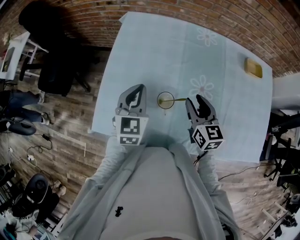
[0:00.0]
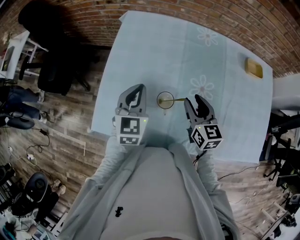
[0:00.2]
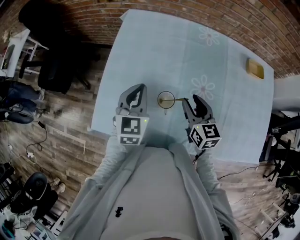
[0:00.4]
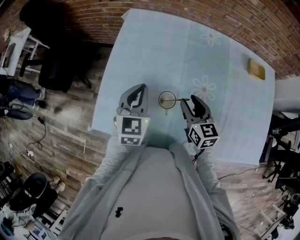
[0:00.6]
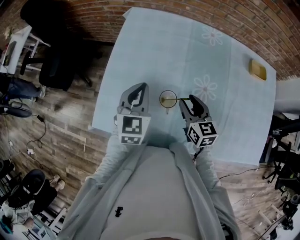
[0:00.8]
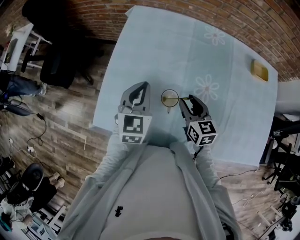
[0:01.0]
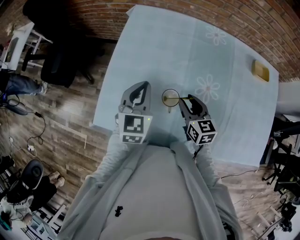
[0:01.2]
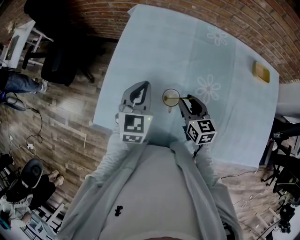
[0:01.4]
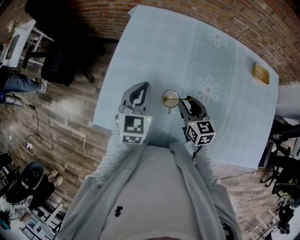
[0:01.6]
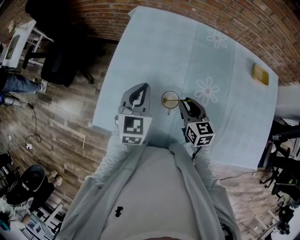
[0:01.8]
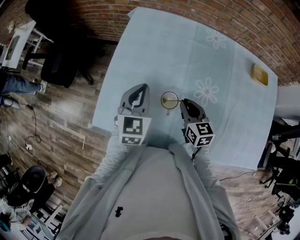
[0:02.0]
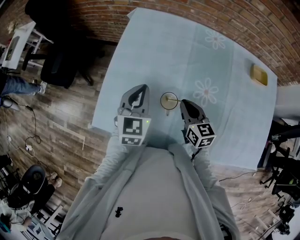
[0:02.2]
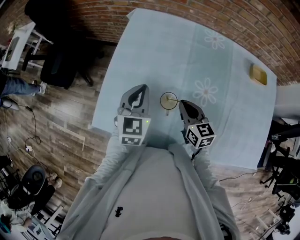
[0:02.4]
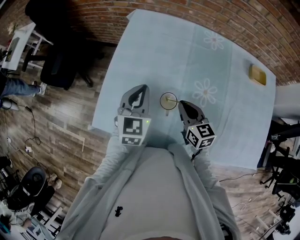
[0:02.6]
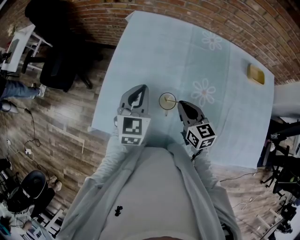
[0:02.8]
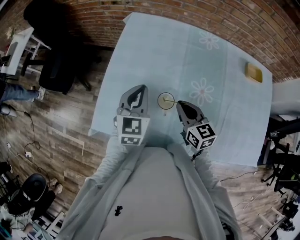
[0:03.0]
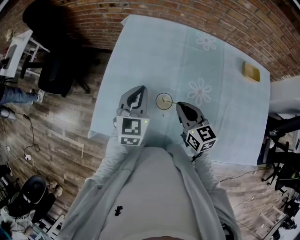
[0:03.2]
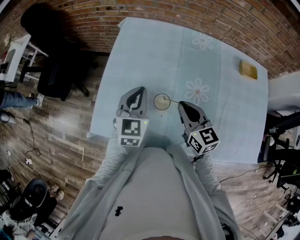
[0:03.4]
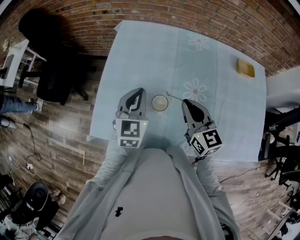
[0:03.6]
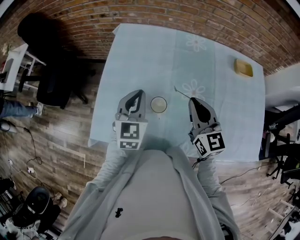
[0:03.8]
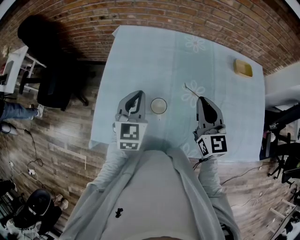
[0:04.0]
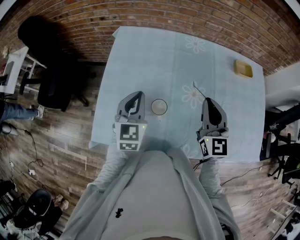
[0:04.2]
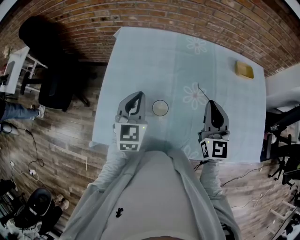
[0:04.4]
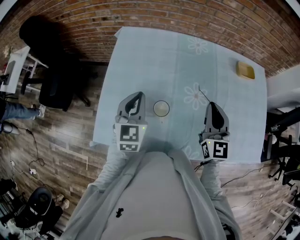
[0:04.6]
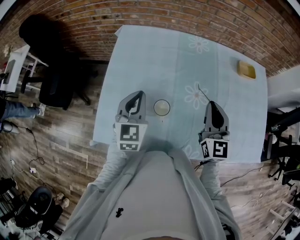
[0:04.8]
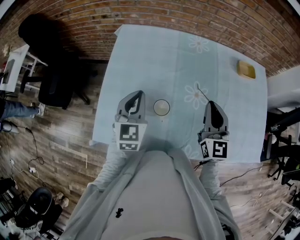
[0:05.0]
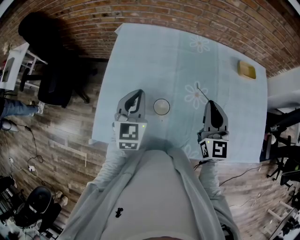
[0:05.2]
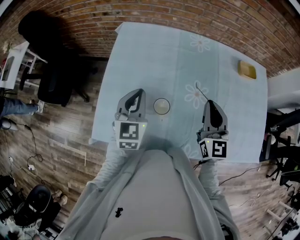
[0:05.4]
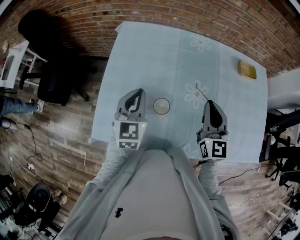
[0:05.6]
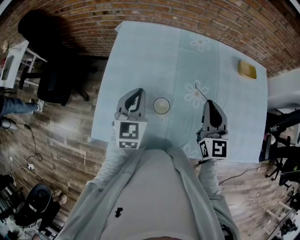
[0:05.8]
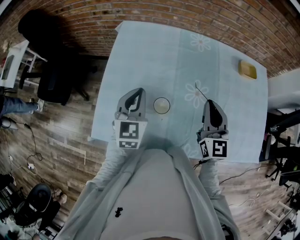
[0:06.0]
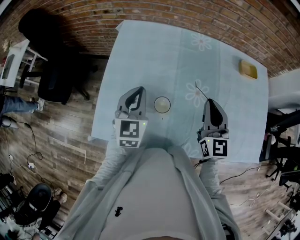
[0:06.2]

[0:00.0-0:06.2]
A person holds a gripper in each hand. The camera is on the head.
0:00.0 to 0:01.6: The right gripper heads downward, covering approximately 5 cm.
0:01.6 to 0:03.2: The right gripper shifts approximately 5 cm upward, and closes up.
0:03.2 to 0:04.6: The right gripper travels to the right and upward by some 15 cm, and rotates roughly 40 degrees.
0:04.6 to 0:06.2: The grippers make only small movements.

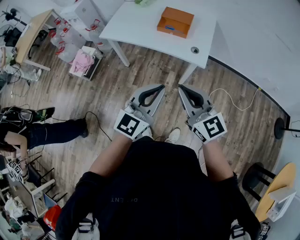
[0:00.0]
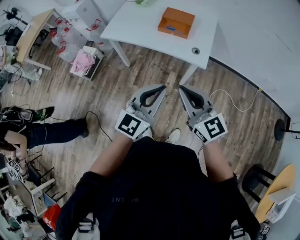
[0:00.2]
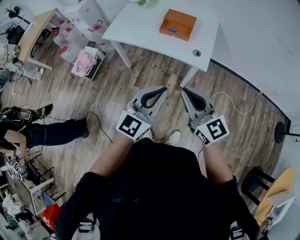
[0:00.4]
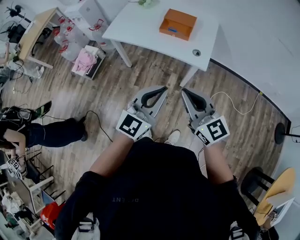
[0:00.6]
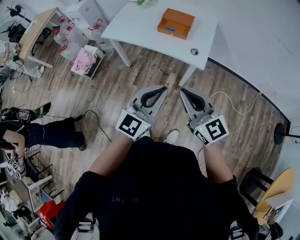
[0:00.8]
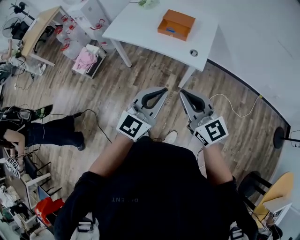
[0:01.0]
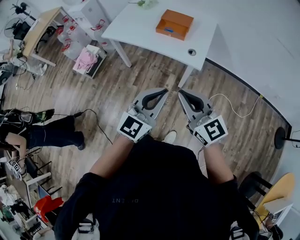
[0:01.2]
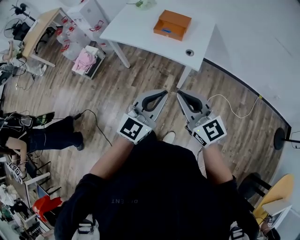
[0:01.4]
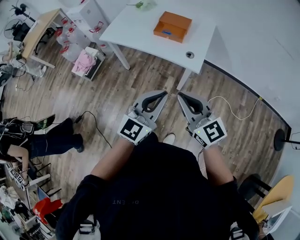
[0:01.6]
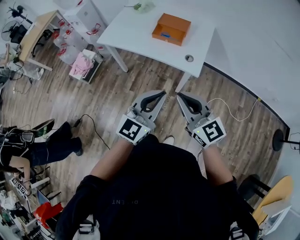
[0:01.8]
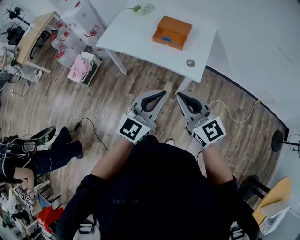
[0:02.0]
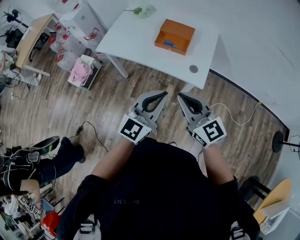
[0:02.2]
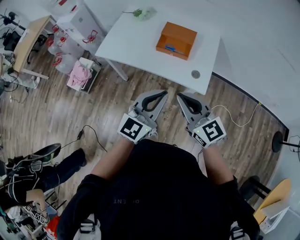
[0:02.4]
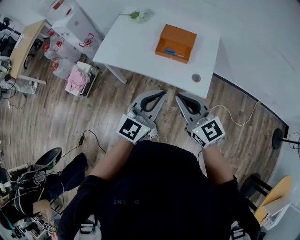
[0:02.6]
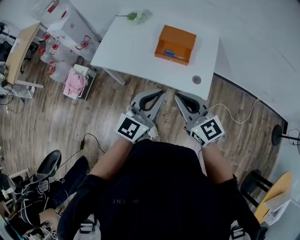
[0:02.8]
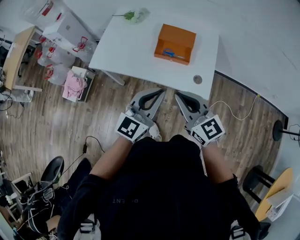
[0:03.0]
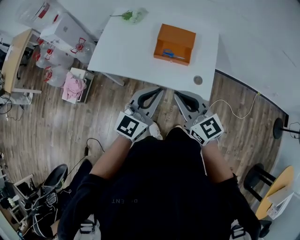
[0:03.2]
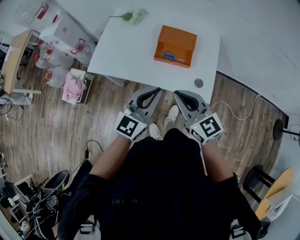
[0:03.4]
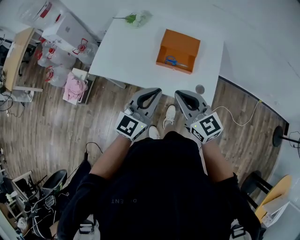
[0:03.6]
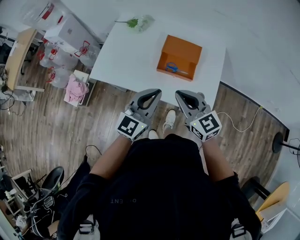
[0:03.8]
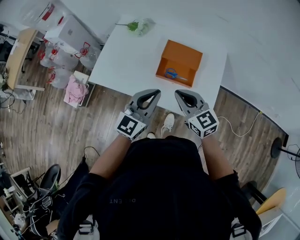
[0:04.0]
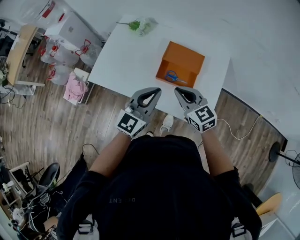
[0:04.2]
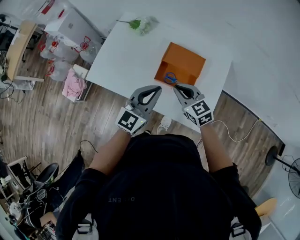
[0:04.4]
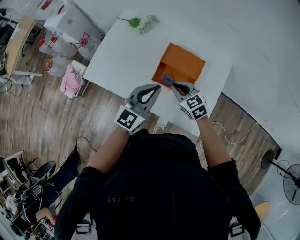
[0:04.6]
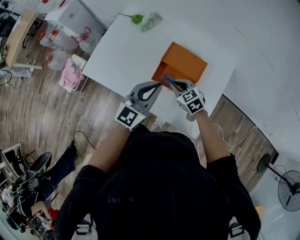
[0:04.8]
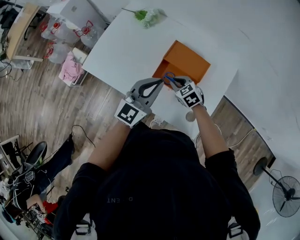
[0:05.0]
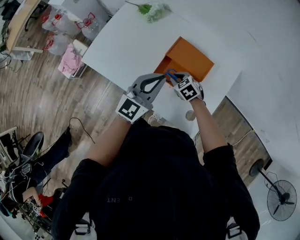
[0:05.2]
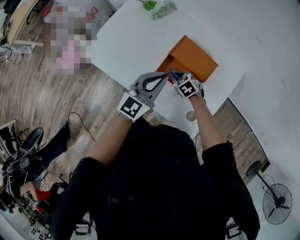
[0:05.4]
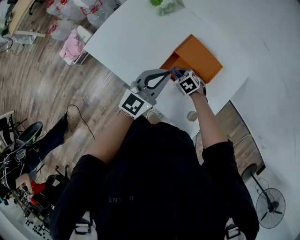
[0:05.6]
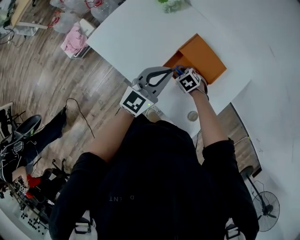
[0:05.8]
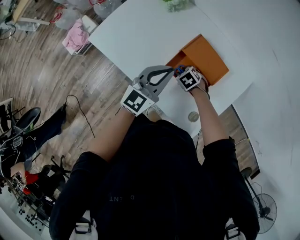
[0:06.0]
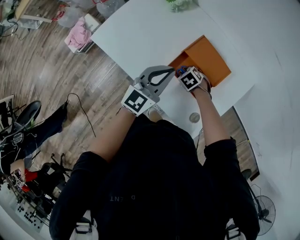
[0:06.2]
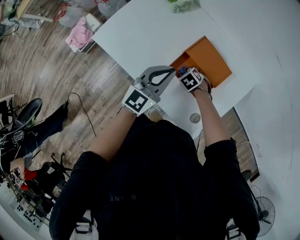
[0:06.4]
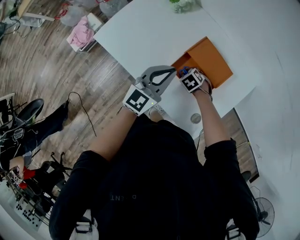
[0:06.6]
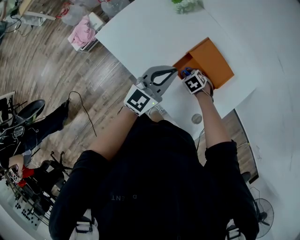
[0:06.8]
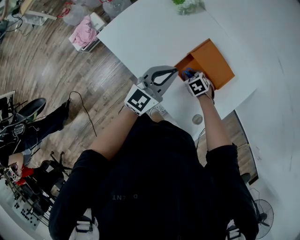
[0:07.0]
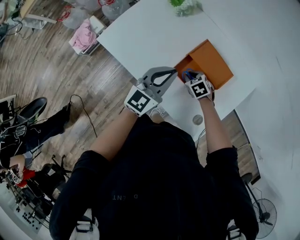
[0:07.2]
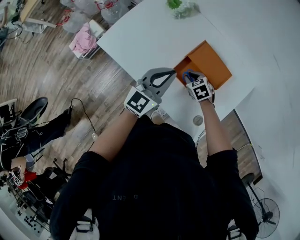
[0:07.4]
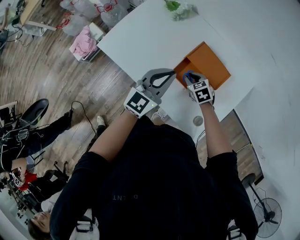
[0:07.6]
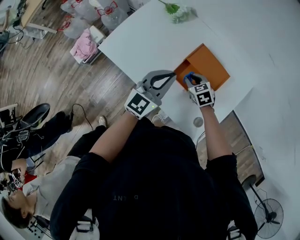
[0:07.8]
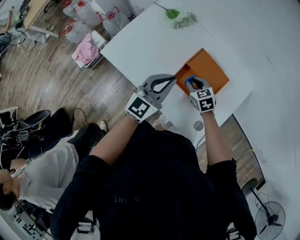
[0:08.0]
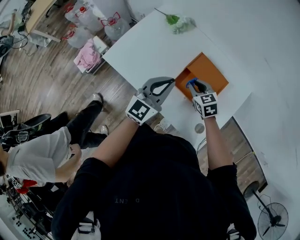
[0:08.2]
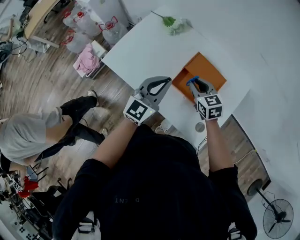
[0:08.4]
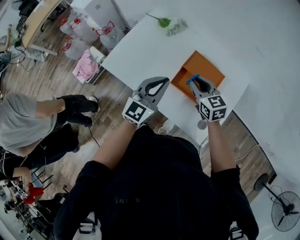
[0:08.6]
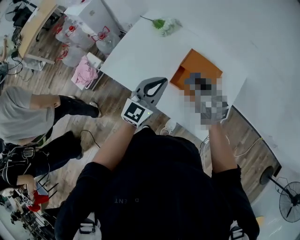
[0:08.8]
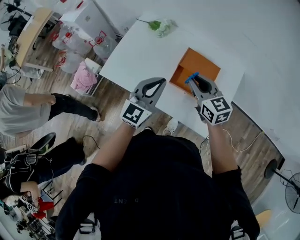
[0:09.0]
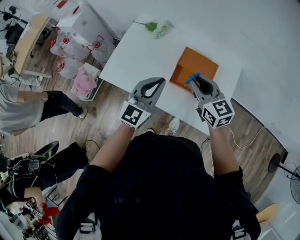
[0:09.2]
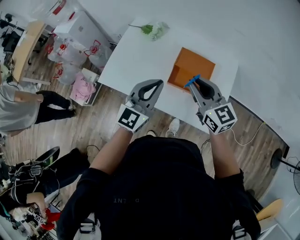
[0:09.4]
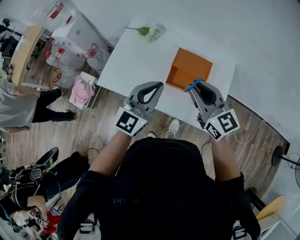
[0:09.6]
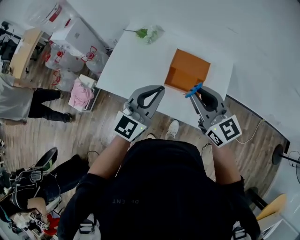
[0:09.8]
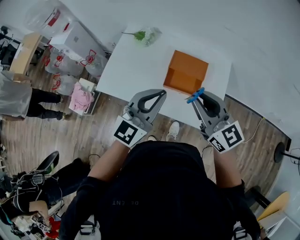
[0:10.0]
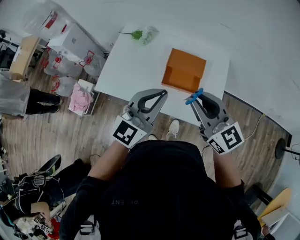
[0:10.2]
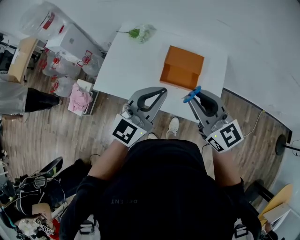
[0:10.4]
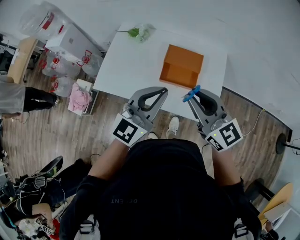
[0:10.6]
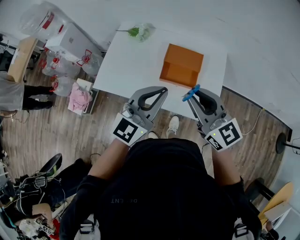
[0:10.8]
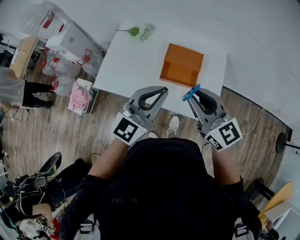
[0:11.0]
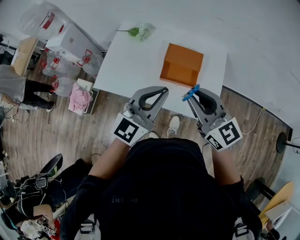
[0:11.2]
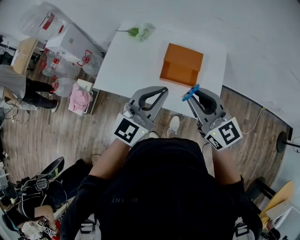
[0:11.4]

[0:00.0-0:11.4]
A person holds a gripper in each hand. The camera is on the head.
0:00.0 to 0:01.4: The two grippers go roughly 10 cm to the right.
0:01.4 to 0:02.8: Both grippers move forward, roughly 25 cm.
0:02.8 to 0:04.2: The right gripper shifts some 25 cm forward and downward. The left gripper shifts roughly 20 cm forward.
0:04.2 to 0:05.6: The left gripper heads forward and downward, covering some 15 cm; the right gripper goes about 30 cm downward and forward, tilts its fingers approximately 40 degrees downward, and opens its fingers.
0:05.6 to 0:07.2: The grippers stay close to where they were, moving slightly.
0:07.2 to 0:08.6: The left gripper goes approximately 5 cm upward, while the right gripper travels upward by roughly 25 cm, and tilts its fingers roughly 40 degrees upward.
0:08.6 to 0:10.0: The left gripper is displaced upward and backward by approximately 15 cm. The right gripper shifts approximately 25 cm upward and backward, and rotates some 30 degrees.
0:10.0 to 0:11.4: The grippers stay close to where they were, moving slightly.

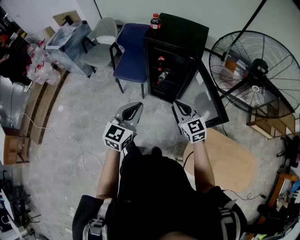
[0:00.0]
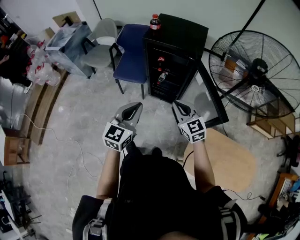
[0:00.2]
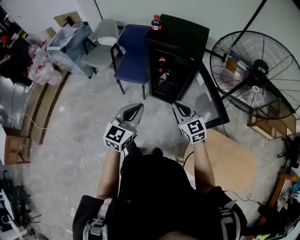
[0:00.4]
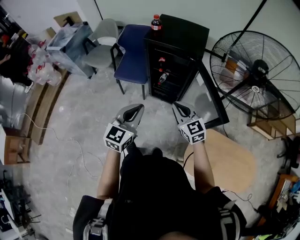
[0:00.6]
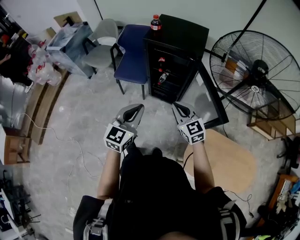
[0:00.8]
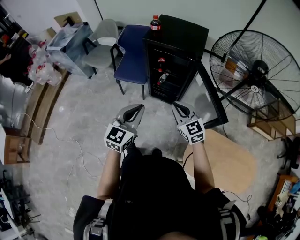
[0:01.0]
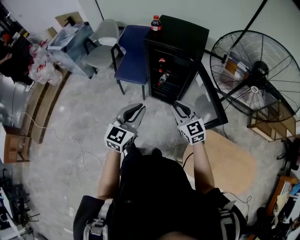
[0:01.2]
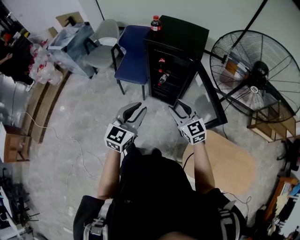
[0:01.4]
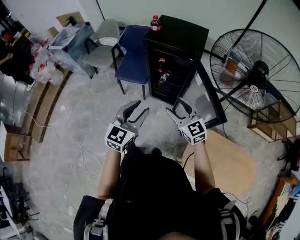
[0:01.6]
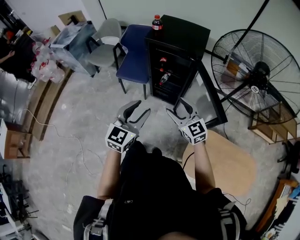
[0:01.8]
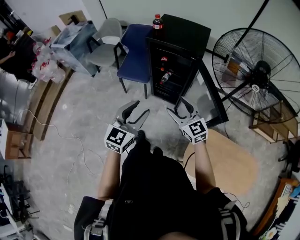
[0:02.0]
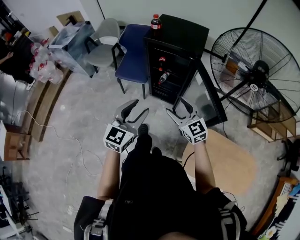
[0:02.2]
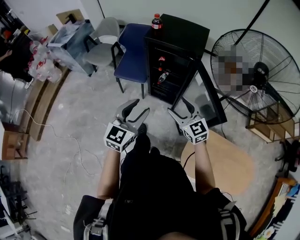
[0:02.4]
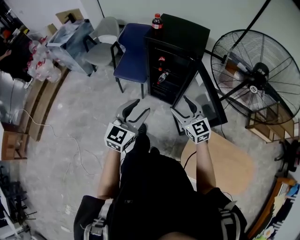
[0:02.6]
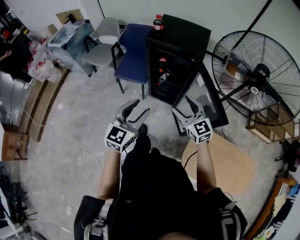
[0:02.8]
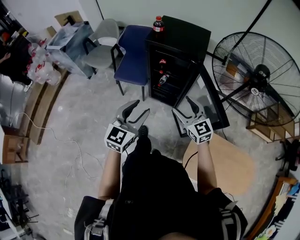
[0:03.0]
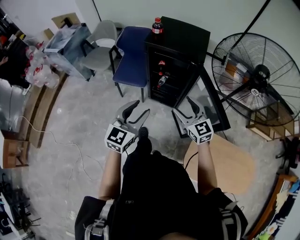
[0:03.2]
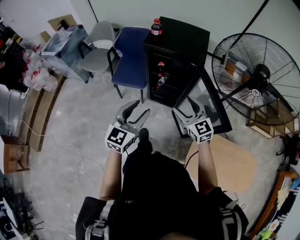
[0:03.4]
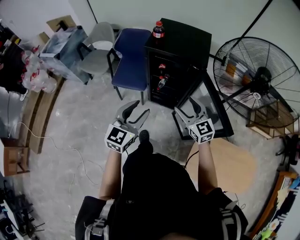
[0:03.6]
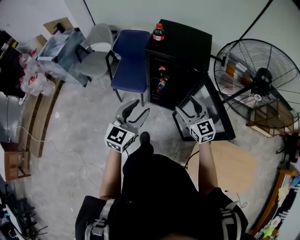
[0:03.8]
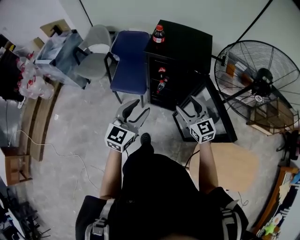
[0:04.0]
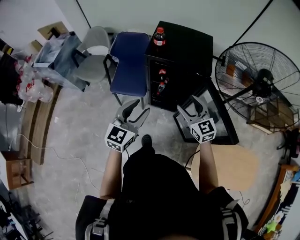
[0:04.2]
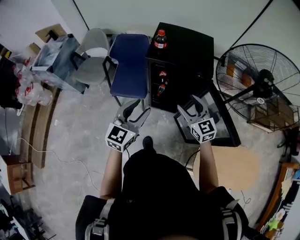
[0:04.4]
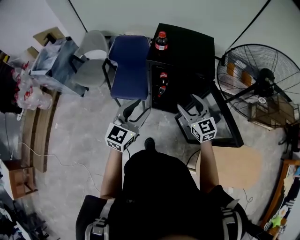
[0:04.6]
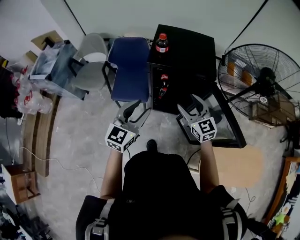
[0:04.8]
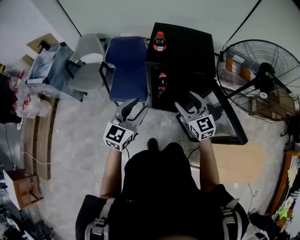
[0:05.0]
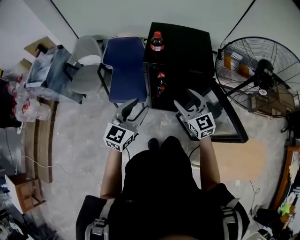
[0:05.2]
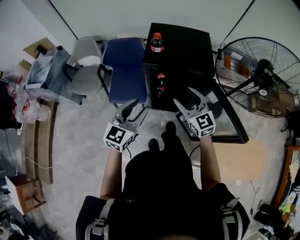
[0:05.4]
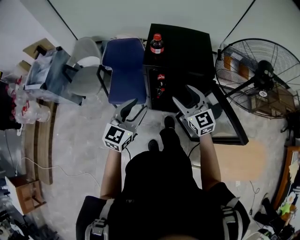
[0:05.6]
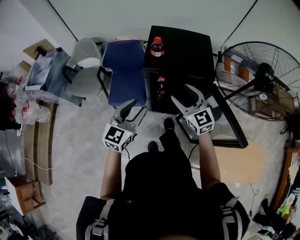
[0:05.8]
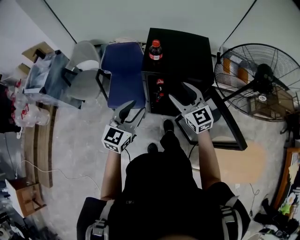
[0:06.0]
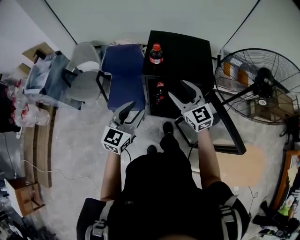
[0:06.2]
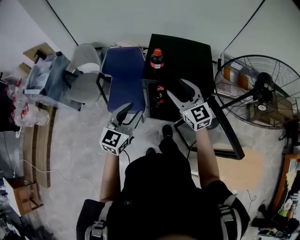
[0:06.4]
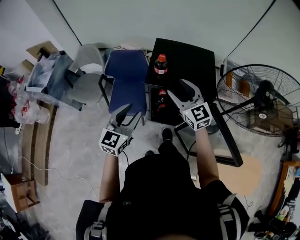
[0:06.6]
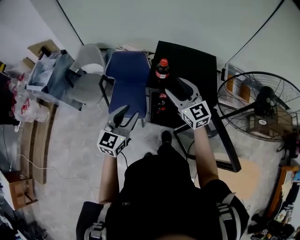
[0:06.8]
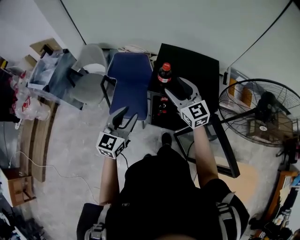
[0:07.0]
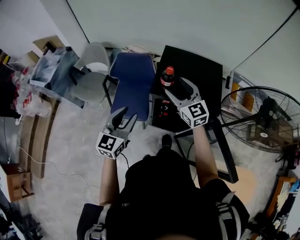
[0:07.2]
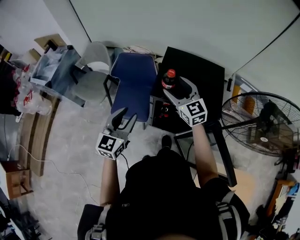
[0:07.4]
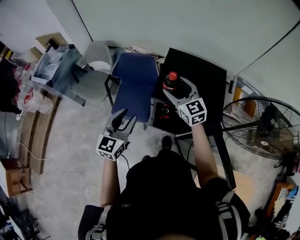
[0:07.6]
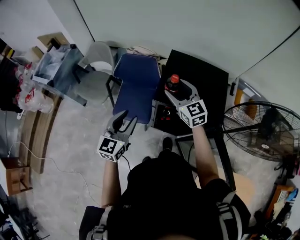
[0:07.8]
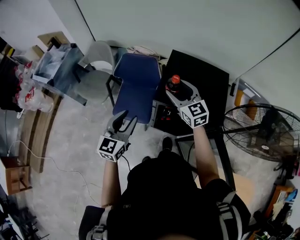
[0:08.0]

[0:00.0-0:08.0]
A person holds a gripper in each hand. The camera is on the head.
0:00.0 to 0:01.6: The right gripper opens its fingers; the left gripper opens its fingers.
0:01.6 to 0:03.2: The grippers stay close to where they were, moving slightly.
0:03.2 to 0:04.8: Both grippers move forward and to the left, about 20 cm.
0:04.8 to 0:06.4: The left gripper travels forward by some 10 cm; the right gripper goes approximately 15 cm forward and upward.
0:06.4 to 0:08.0: The left gripper heads forward and to the left, covering approximately 10 cm; the right gripper travels forward by some 15 cm.
